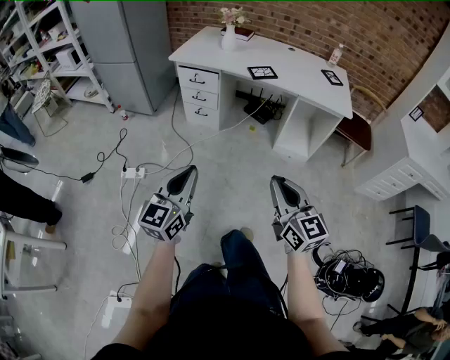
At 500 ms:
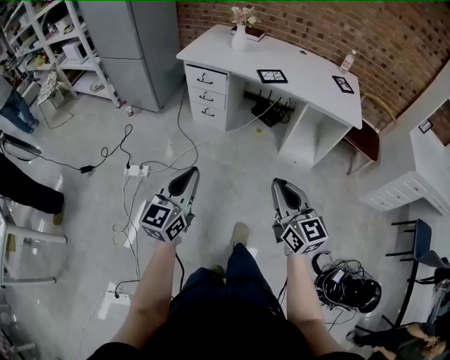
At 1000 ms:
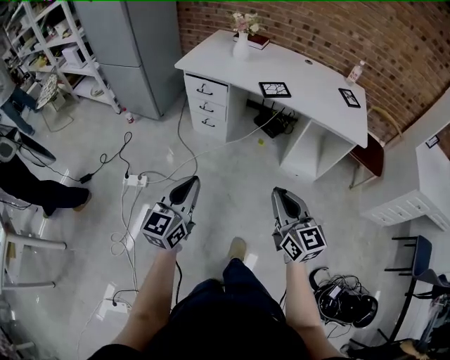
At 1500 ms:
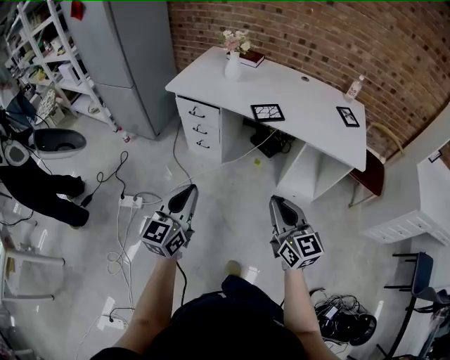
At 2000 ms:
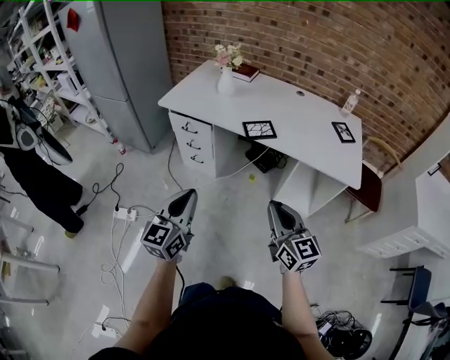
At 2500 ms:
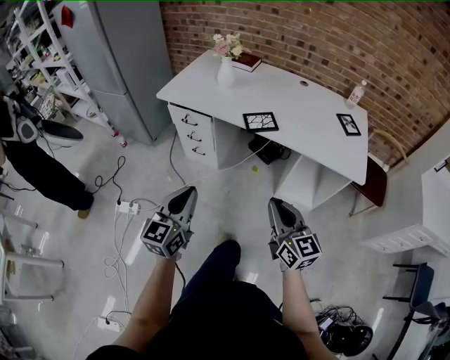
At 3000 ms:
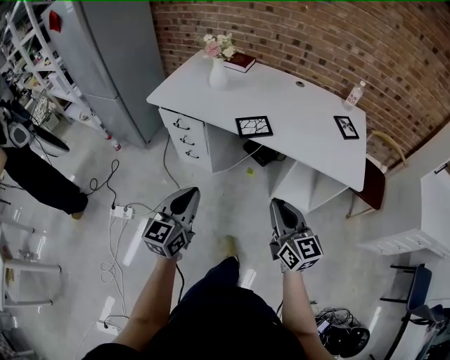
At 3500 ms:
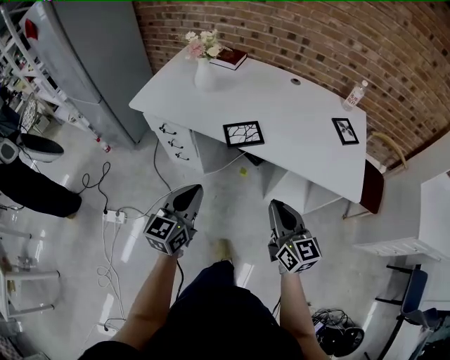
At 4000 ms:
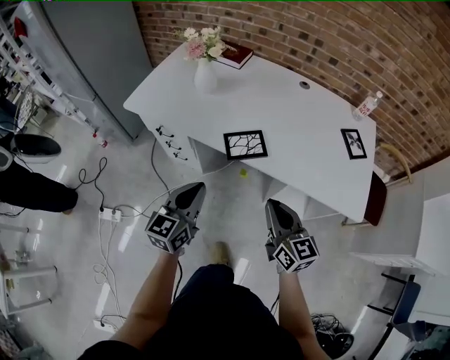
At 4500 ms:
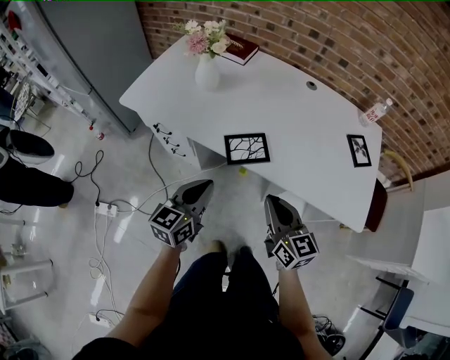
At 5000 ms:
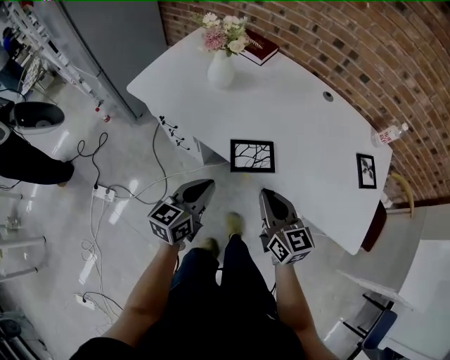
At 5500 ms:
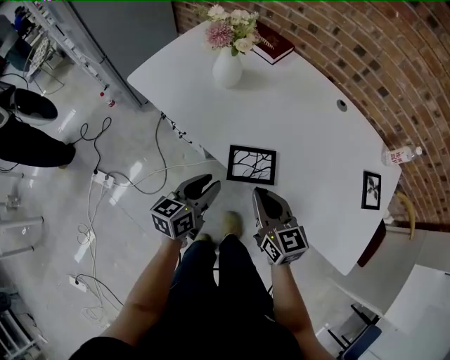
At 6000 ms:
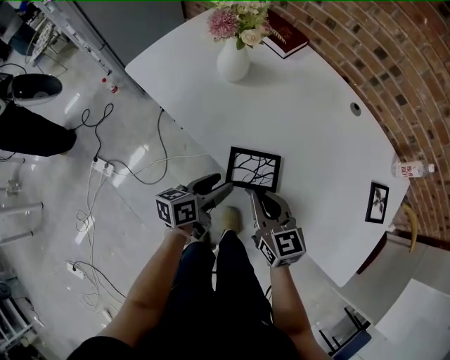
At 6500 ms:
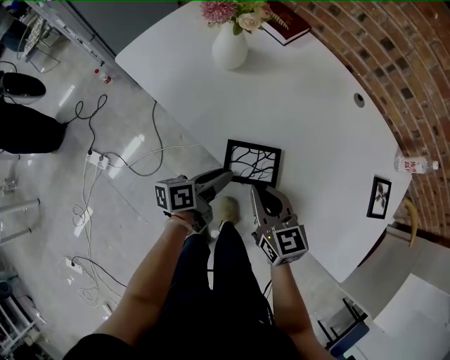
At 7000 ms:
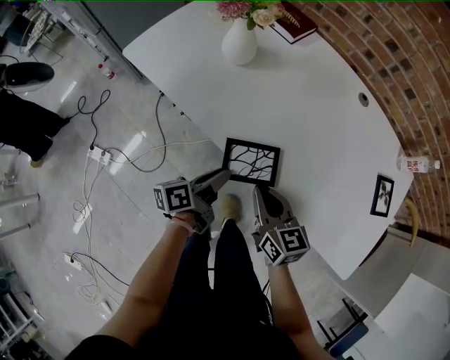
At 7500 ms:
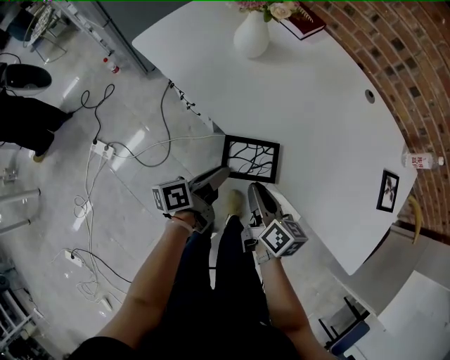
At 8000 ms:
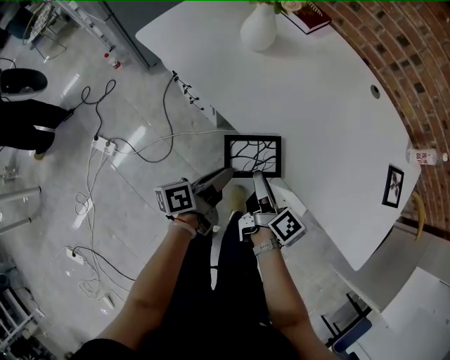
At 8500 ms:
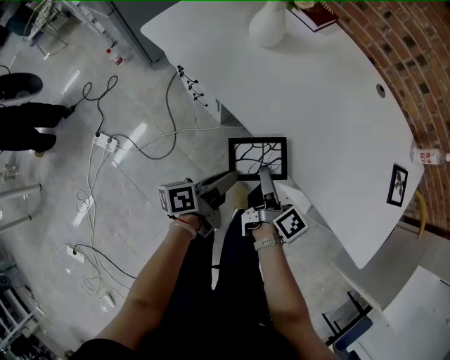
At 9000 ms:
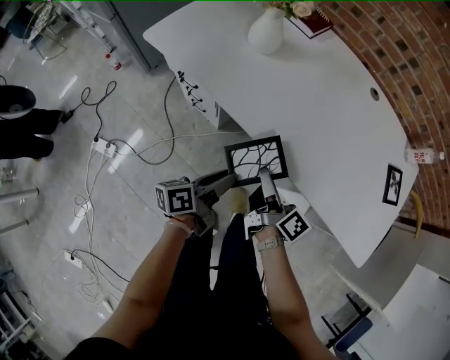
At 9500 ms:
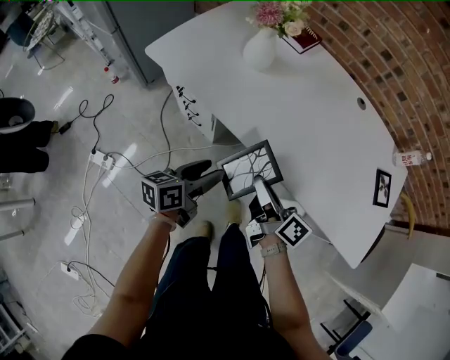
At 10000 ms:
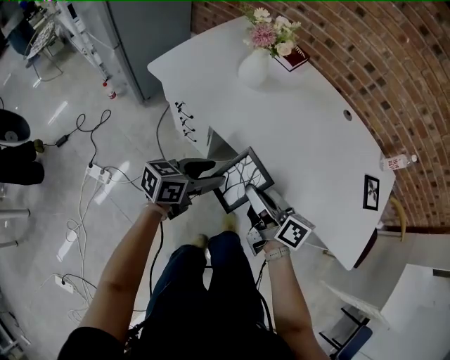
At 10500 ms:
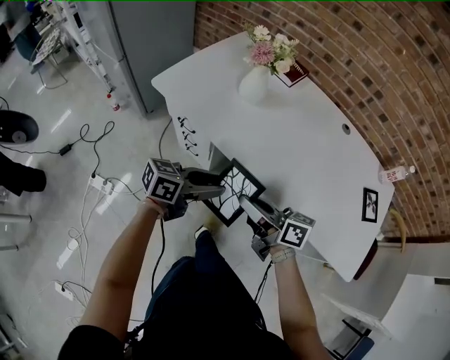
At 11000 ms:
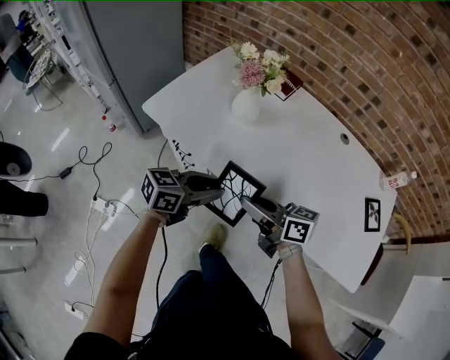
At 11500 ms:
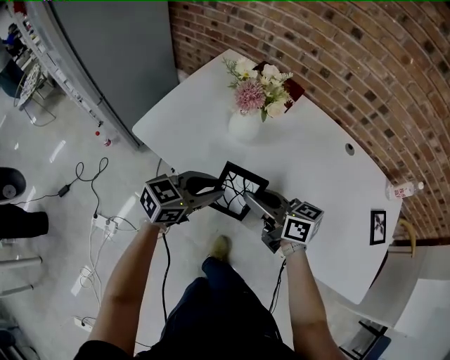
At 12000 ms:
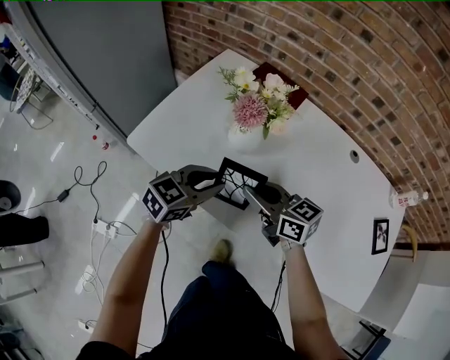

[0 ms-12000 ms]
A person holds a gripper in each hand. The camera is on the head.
0 ms to 2000 ms: The grippers both shift forward by some 30 cm.
2000 ms to 4000 ms: The left gripper travels forward and to the right by approximately 30 cm. The right gripper is displaced forward by approximately 25 cm.
4000 ms to 6000 ms: The left gripper is displaced forward, downward and to the right by about 20 cm, rotates around the line of its fingers by some 40 degrees, counterclockwise from behind, and opens; the right gripper heads forward and downward, covering some 20 cm, and rotates about 30 degrees.
6000 ms to 8000 ms: The left gripper shifts approximately 5 cm backward, changes its angle by some 30 degrees, and closes. Meanwhile the right gripper goes about 10 cm downward, rolls clockwise, seen from behind, by roughly 70 degrees, and opens up.
8000 ms to 10000 ms: Both grippers move upward and to the left, roughly 10 cm. The left gripper rotates around the line of its fingers by about 40 degrees, clockwise from behind, and opens up. Meanwhile the right gripper rotates some 30 degrees, and closes.
10000 ms to 12000 ms: The left gripper ends up about 25 cm from where it was, changes its angle by some 30 degrees, and closes; the right gripper moves approximately 25 cm, and turns by about 30 degrees.

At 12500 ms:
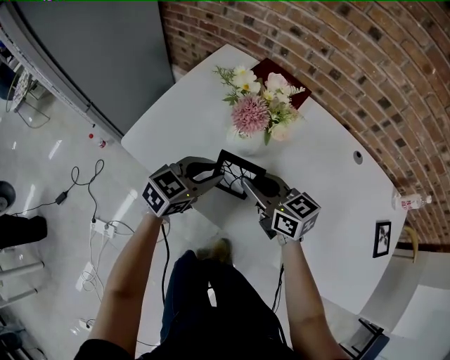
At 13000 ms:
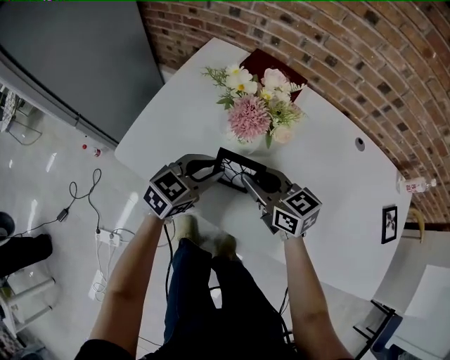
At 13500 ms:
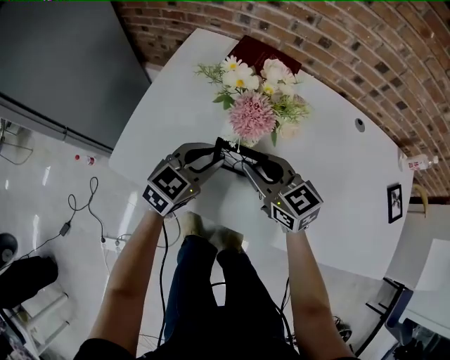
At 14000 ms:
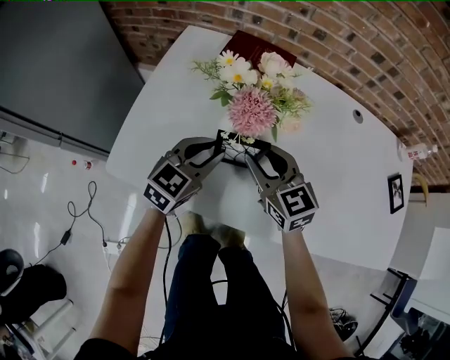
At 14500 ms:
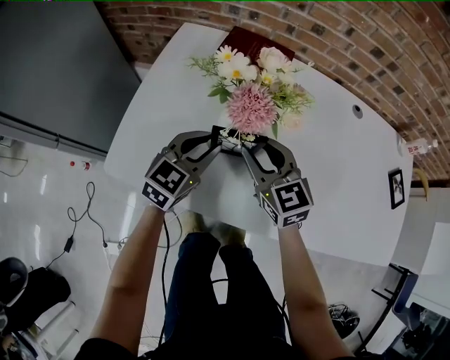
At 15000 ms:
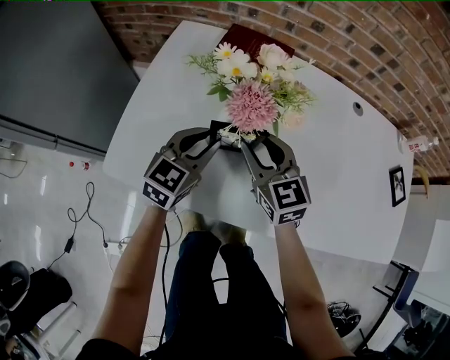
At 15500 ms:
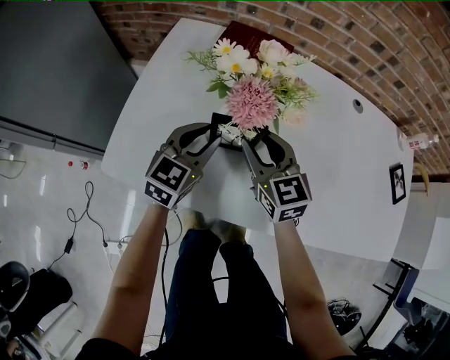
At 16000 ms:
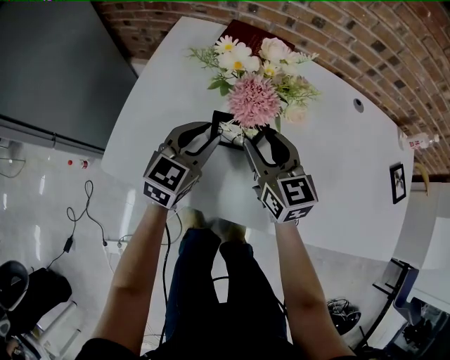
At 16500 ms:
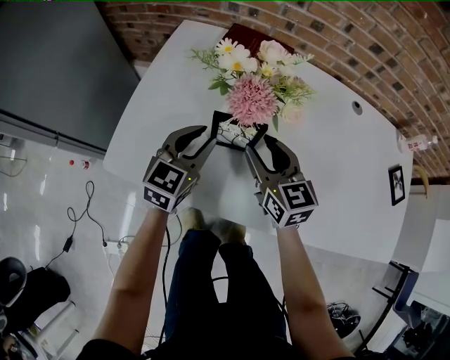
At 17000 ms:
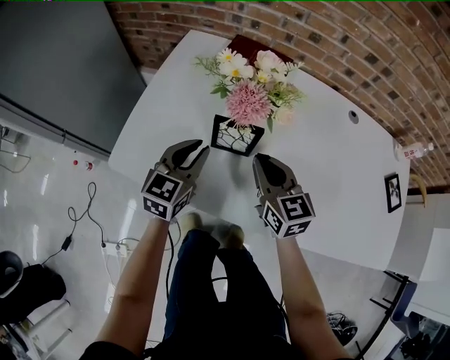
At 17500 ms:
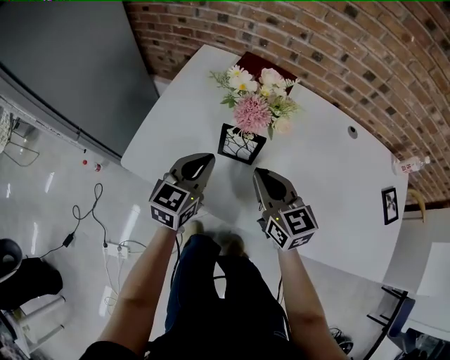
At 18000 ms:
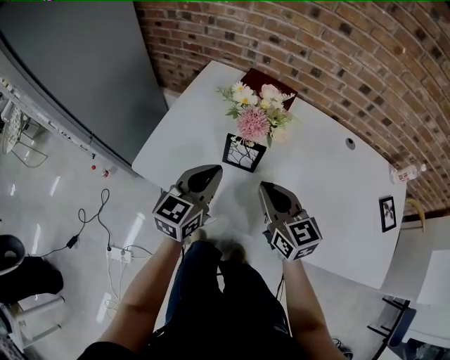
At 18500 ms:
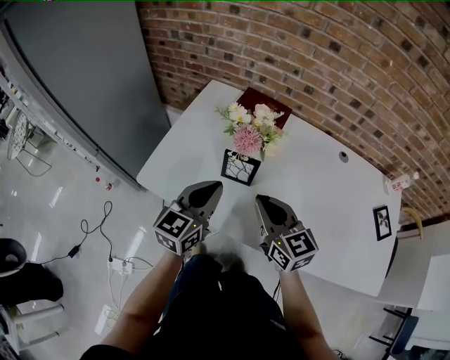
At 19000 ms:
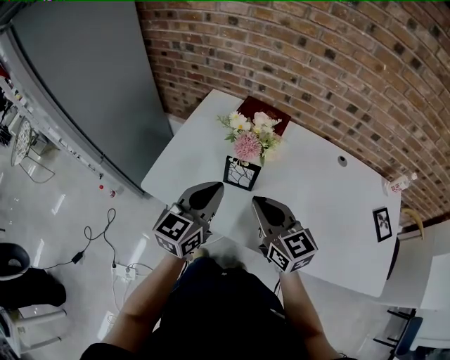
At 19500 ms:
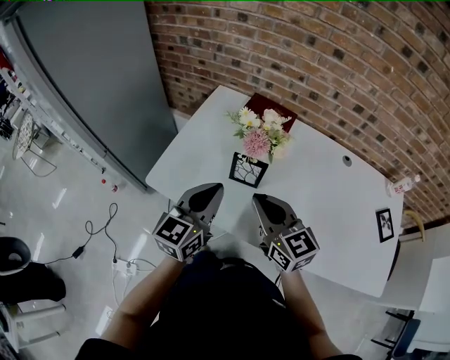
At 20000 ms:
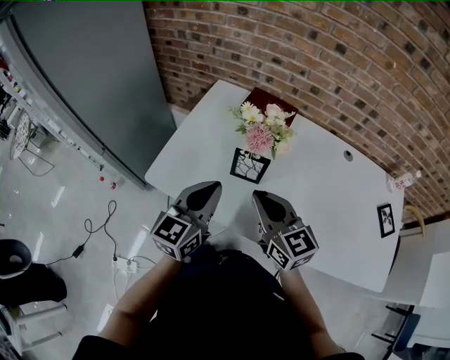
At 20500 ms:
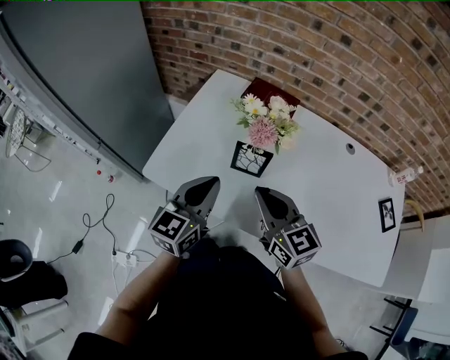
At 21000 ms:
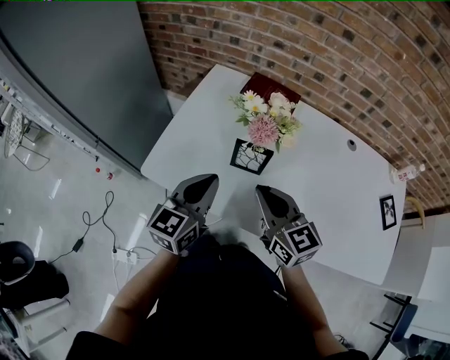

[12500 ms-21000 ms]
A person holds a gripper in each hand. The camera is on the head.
12500 ms to 14500 ms: Both grippers travel together forward, some 5 cm. The right gripper turns by some 40 degrees.
14500 ms to 16500 ms: The grippers move only a little.
16500 ms to 19000 ms: Both grippers move upward and backward, approximately 20 cm. The right gripper closes. Meanwhile the left gripper closes up.
19000 ms to 21000 ms: The left gripper moves about 5 cm.

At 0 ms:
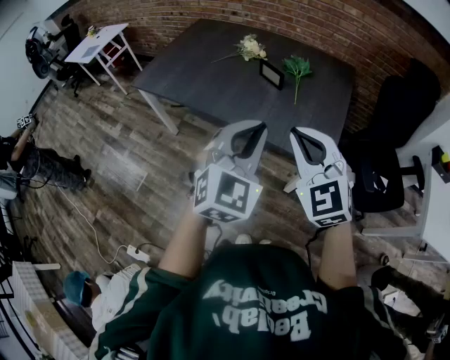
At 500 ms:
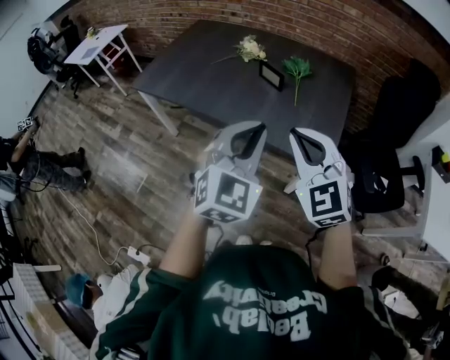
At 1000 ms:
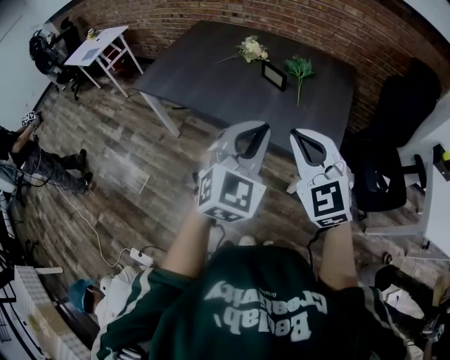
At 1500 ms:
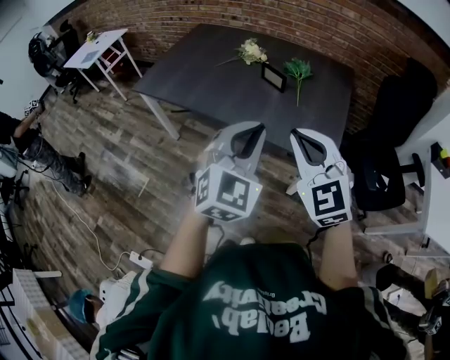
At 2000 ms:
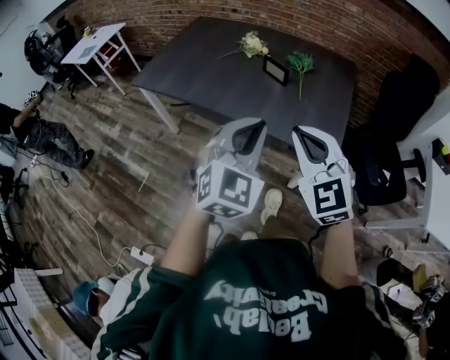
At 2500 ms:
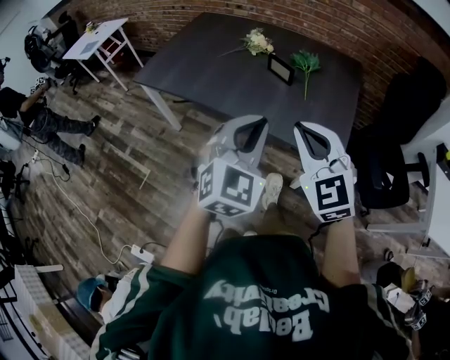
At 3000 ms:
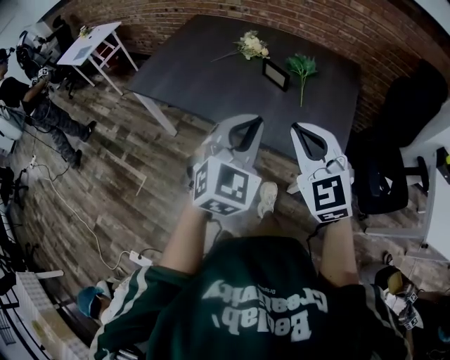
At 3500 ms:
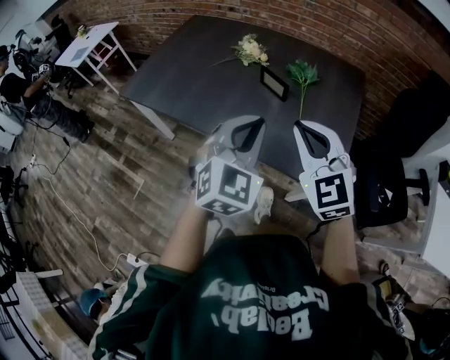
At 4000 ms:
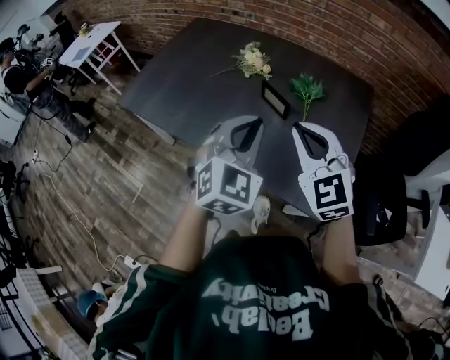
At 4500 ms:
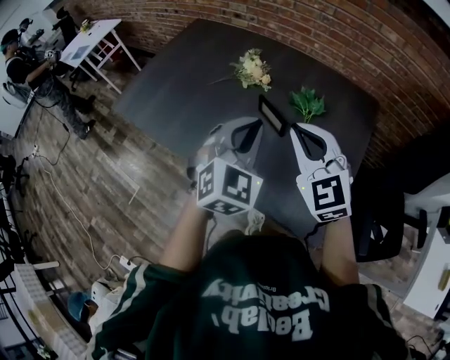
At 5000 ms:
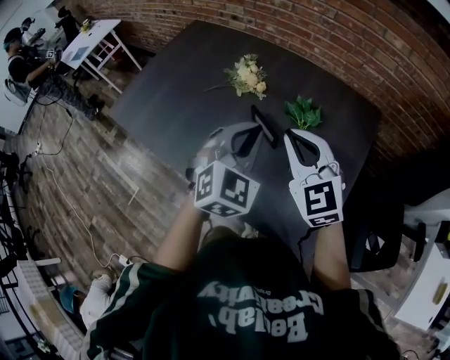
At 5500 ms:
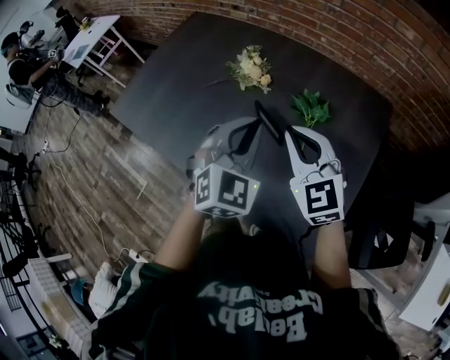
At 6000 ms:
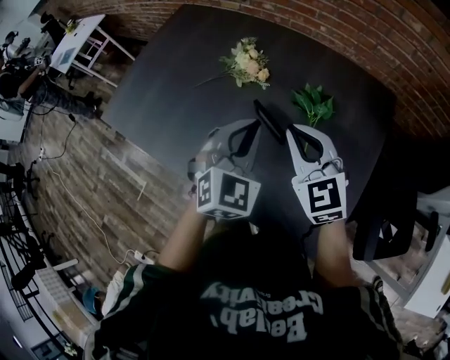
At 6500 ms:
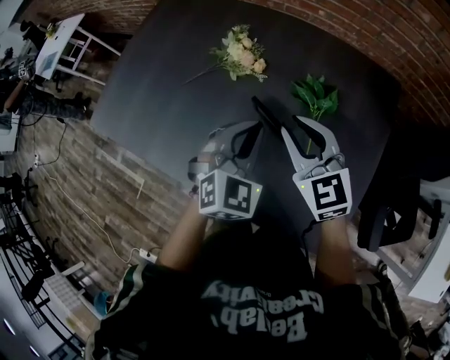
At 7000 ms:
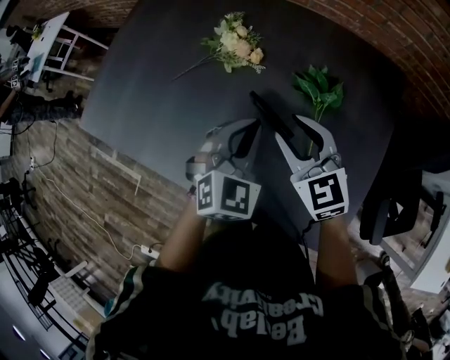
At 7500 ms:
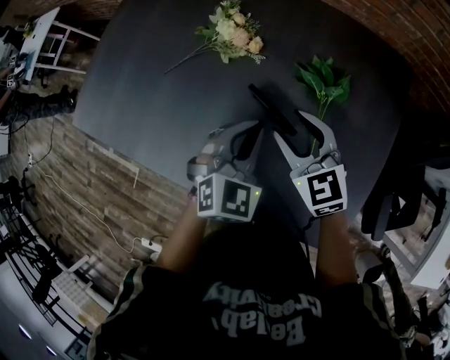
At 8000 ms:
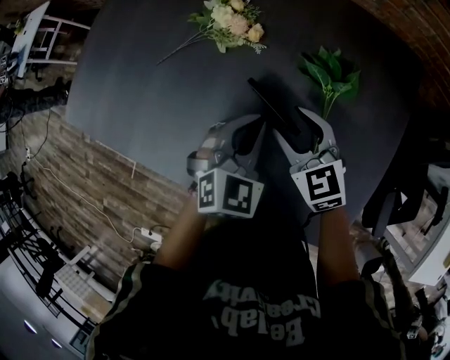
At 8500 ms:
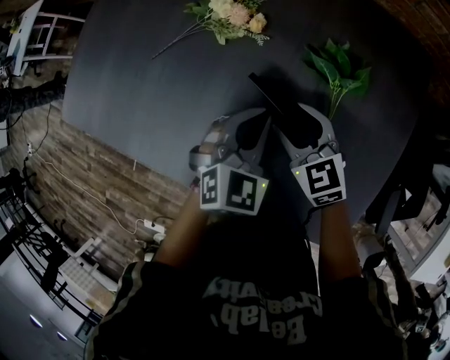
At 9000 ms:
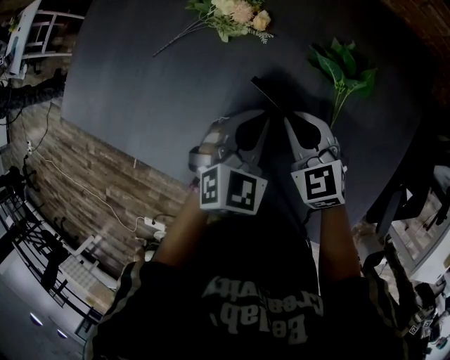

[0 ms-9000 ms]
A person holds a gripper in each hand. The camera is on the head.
0 ms to 2000 ms: The grippers move only a little.
2000 ms to 4500 ms: Both grippers travel together forward, roughly 35 cm.
4500 ms to 7000 ms: The two grippers go some 25 cm forward and downward. The right gripper changes its angle by approximately 20 degrees, and opens its fingers.
7000 ms to 9000 ms: The two grippers go about 10 cm downward. The right gripper closes.
